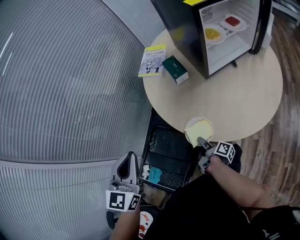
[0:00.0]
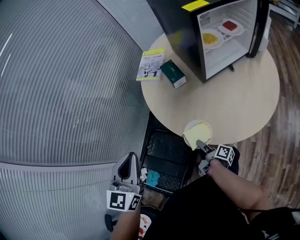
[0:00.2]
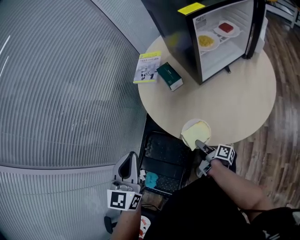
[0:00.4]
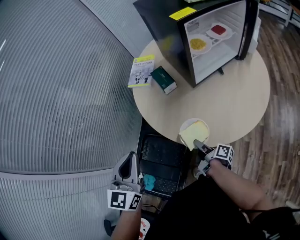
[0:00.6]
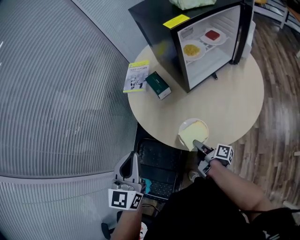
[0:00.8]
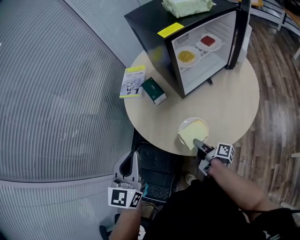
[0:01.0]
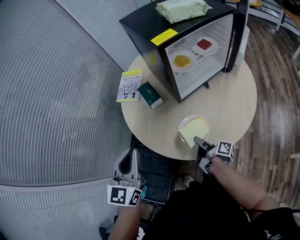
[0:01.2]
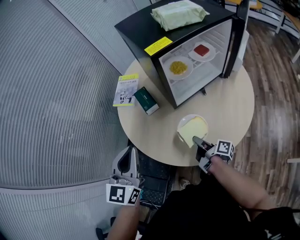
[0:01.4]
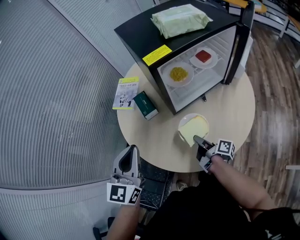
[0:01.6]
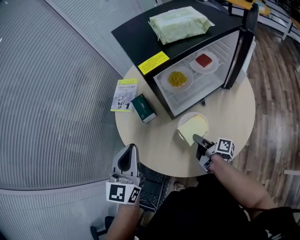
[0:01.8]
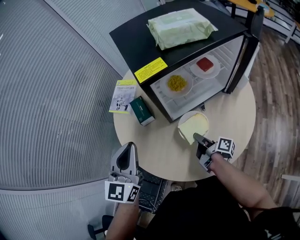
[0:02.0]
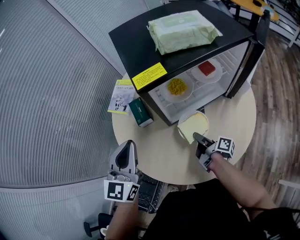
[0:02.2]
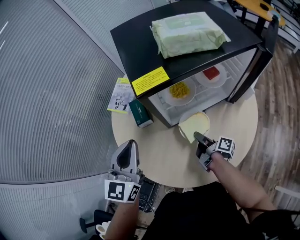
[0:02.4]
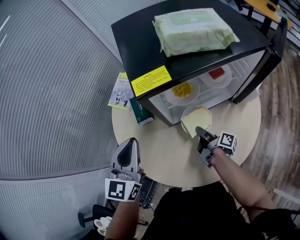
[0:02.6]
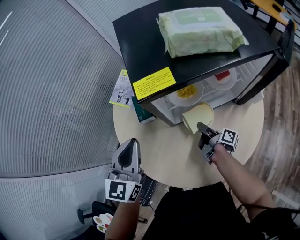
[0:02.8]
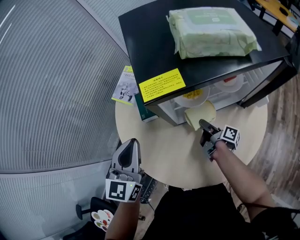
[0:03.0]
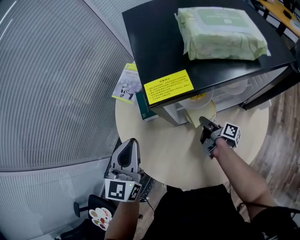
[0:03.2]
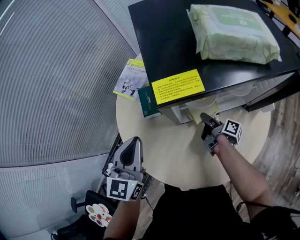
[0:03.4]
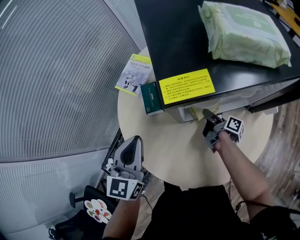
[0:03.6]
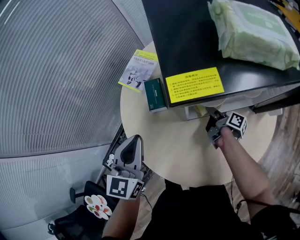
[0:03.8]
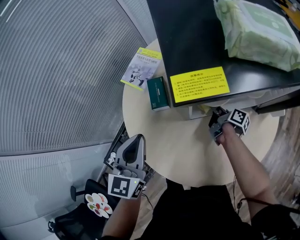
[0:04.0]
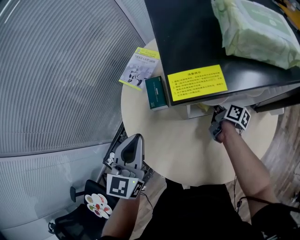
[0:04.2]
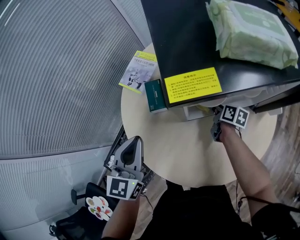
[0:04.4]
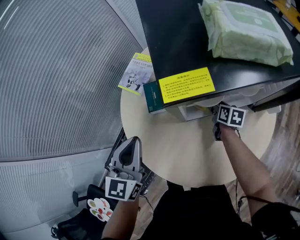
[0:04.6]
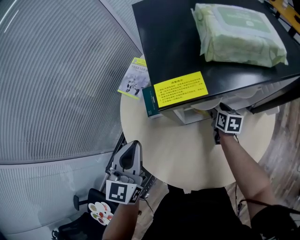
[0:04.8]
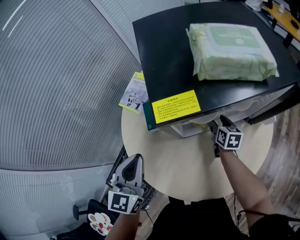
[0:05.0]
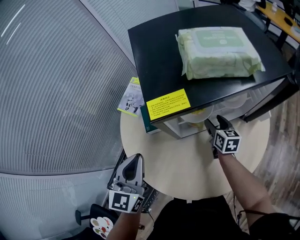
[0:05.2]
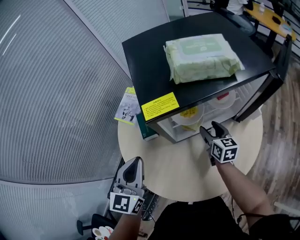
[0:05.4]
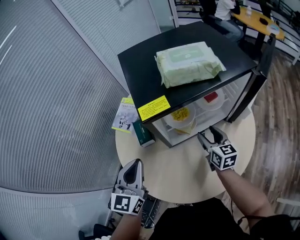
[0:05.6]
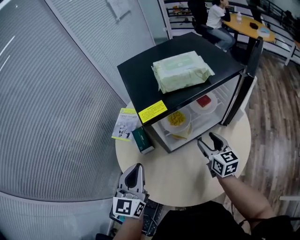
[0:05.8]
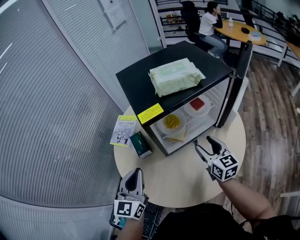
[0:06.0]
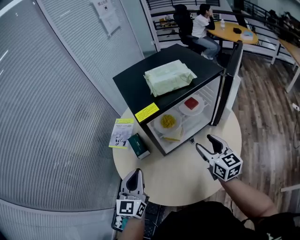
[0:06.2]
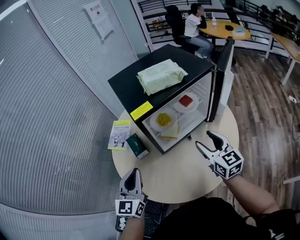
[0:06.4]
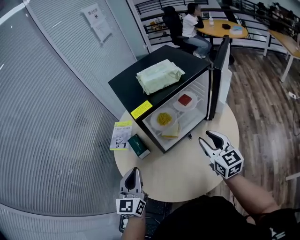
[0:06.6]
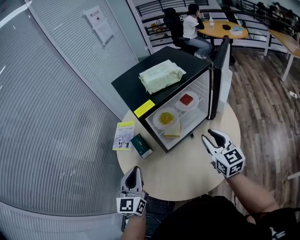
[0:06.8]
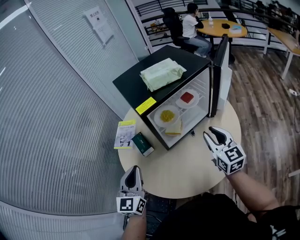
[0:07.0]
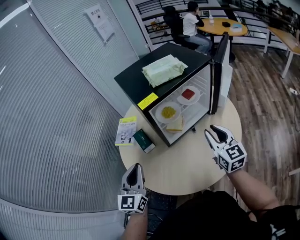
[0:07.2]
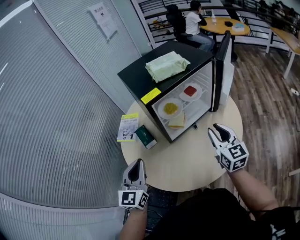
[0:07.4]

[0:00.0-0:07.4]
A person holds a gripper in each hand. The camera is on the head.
0:00.0 to 0:01.4: The left gripper shifts roughly 20 cm to the right and forward, while the right gripper travels to the right, upward and forward by some 25 cm.
0:01.4 to 0:03.0: The right gripper is displaced forward and to the right by about 25 cm. Meanwhile the left gripper shifts approximately 15 cm forward and to the right.
0:03.0 to 0:04.4: The right gripper is displaced forward by roughly 10 cm, and turns by roughly 40 degrees.
0:04.4 to 0:06.0: The left gripper shifts about 5 cm upward, while the right gripper moves upward and backward, approximately 25 cm, and changes its angle by roughly 50 degrees.
0:06.0 to 0:07.4: The right gripper is displaced backward and upward by some 15 cm, and closes its fingers. Meanwhile the left gripper shifts roughly 5 cm backward.

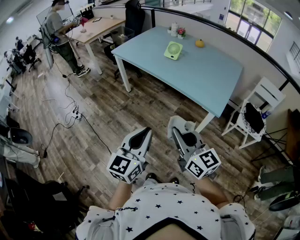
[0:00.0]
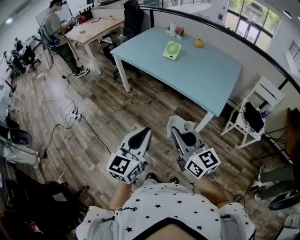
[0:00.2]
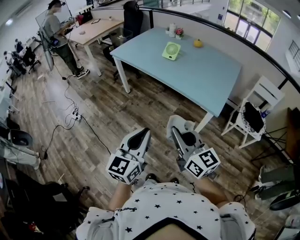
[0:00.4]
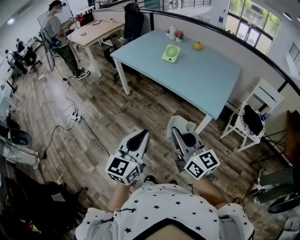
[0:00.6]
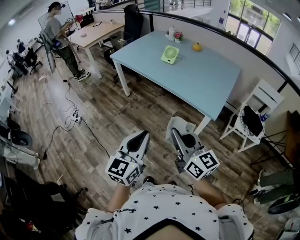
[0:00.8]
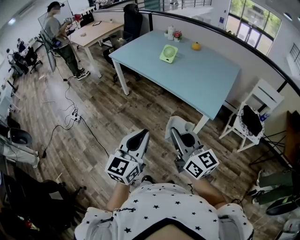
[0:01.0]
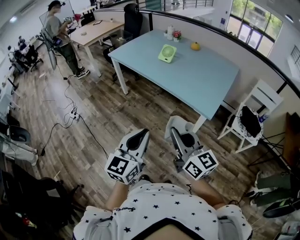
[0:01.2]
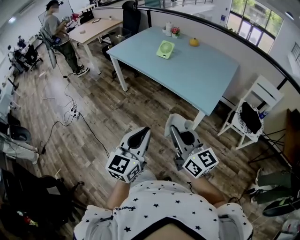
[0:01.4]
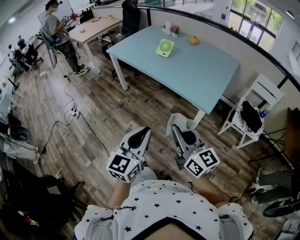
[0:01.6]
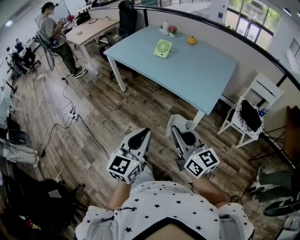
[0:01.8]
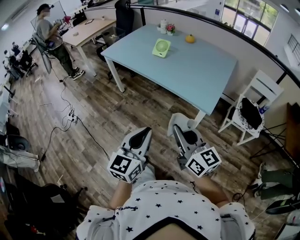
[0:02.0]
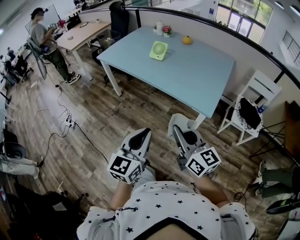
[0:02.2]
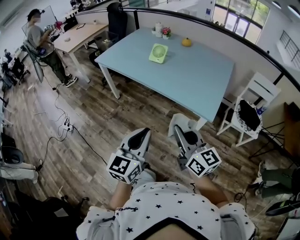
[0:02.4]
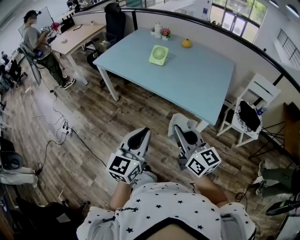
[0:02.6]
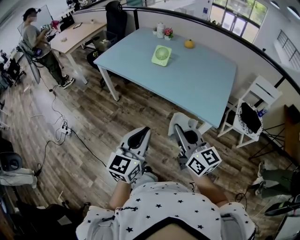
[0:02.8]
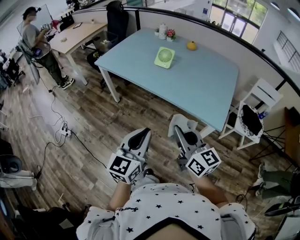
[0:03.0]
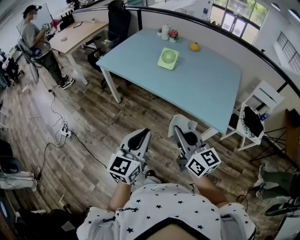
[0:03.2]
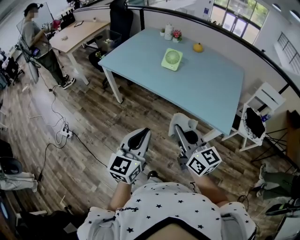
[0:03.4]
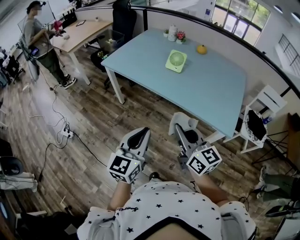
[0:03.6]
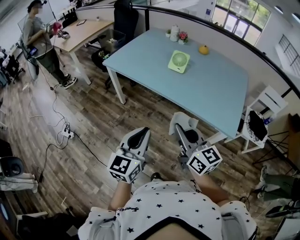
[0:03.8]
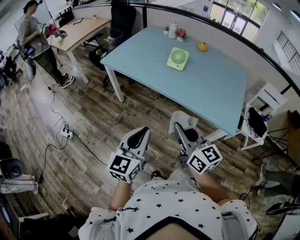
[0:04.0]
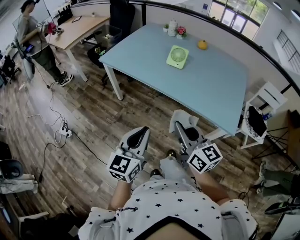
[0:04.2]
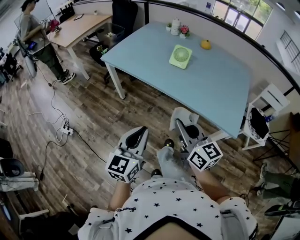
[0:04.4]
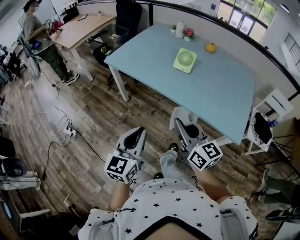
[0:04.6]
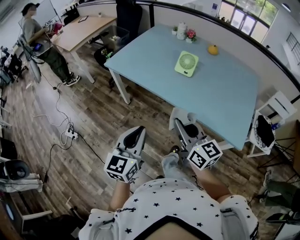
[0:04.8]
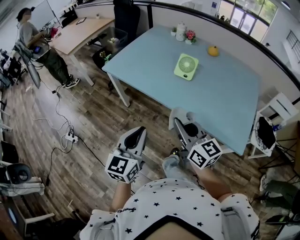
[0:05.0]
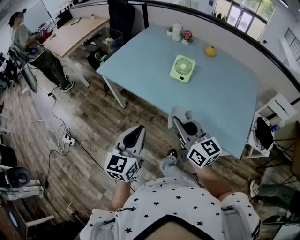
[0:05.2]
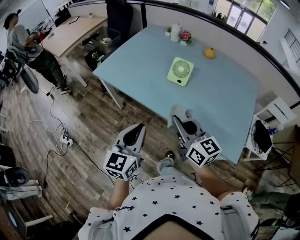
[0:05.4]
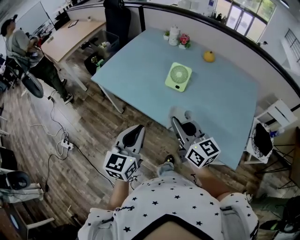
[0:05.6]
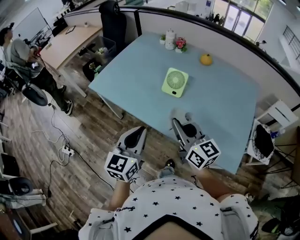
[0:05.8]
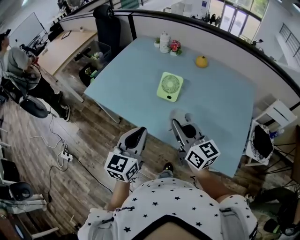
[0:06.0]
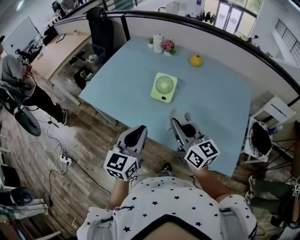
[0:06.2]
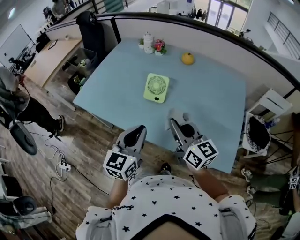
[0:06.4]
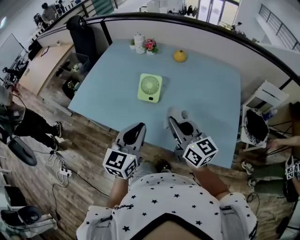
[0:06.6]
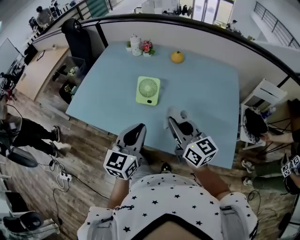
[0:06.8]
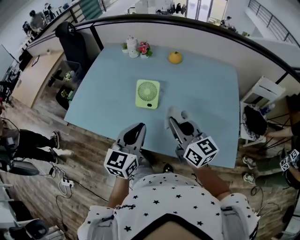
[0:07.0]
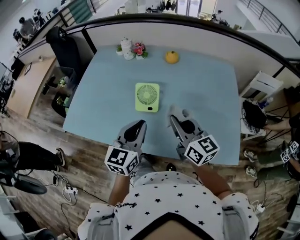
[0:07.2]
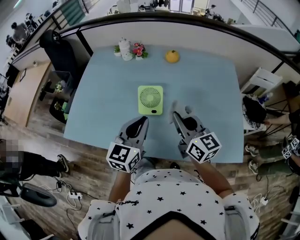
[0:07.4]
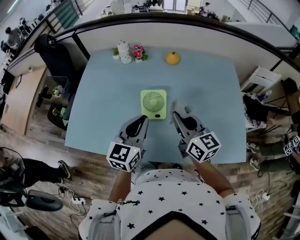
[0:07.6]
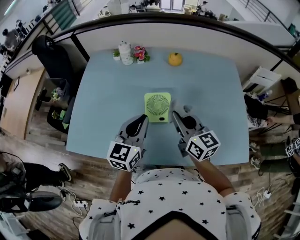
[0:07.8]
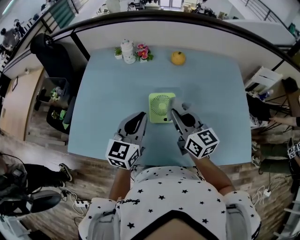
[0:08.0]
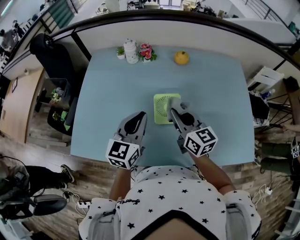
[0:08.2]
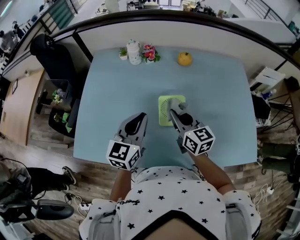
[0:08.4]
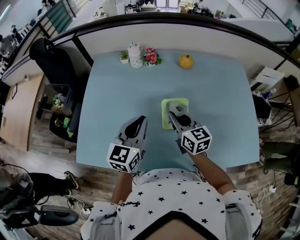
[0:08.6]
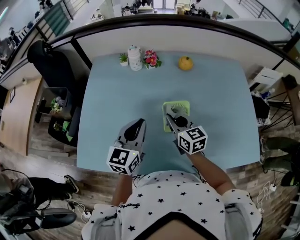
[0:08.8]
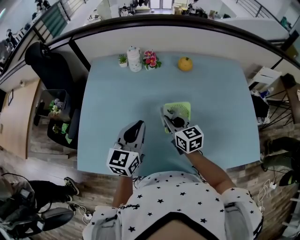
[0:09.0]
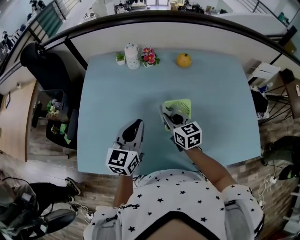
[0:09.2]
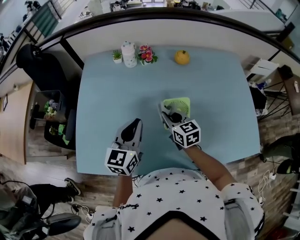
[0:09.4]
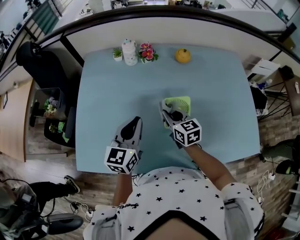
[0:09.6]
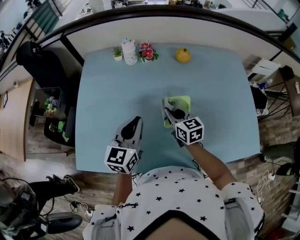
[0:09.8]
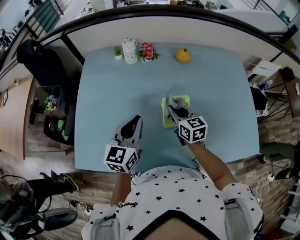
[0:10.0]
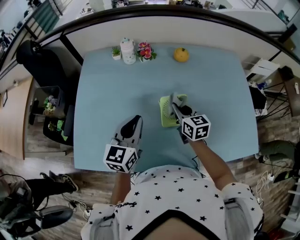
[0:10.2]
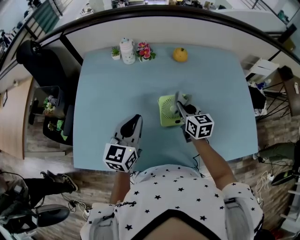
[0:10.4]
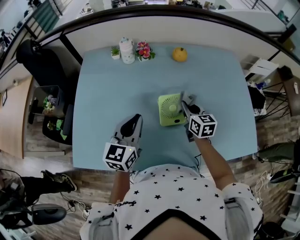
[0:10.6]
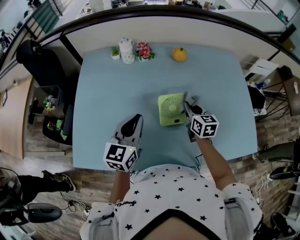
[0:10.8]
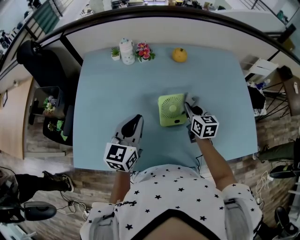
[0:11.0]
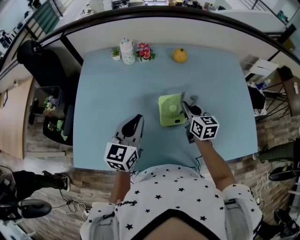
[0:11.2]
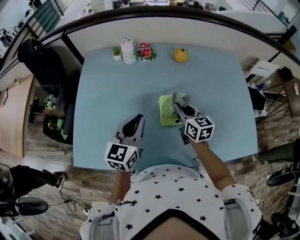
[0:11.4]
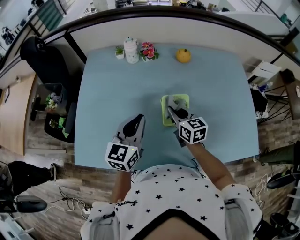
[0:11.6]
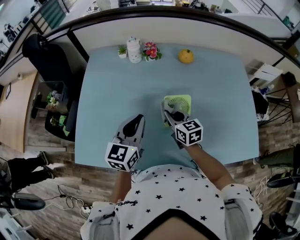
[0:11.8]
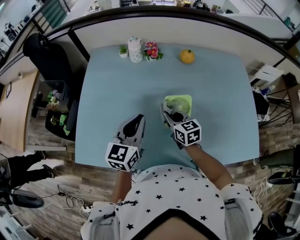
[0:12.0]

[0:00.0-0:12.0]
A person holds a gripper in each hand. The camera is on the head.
0:00.0 to 0:01.6: Both grippers travel together to the right, roughly 10 cm.
0:01.6 to 0:03.0: Both grippers travel together forward and to the left, about 20 cm.
0:03.0 to 0:04.4: Both grippers travel together to the left and forward, approximately 15 cm.
0:04.4 to 0:06.0: Both grippers travel together forward, roughly 25 cm.
0:06.0 to 0:07.6: The right gripper moves approximately 15 cm, and swivels roughly 30 degrees. The left gripper changes place by approximately 20 cm, and rotates about 30 degrees.
0:07.6 to 0:09.0: The right gripper is displaced to the left, downward and forward by some 20 cm. The left gripper moves to the left and forward, approximately 15 cm.
0:09.0 to 0:10.4: The right gripper shifts some 10 cm to the right.
0:10.4 to 0:12.0: The right gripper travels to the left by approximately 10 cm.

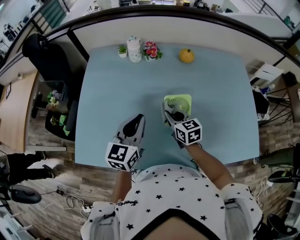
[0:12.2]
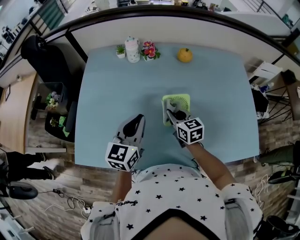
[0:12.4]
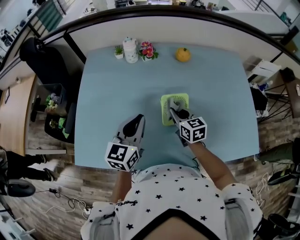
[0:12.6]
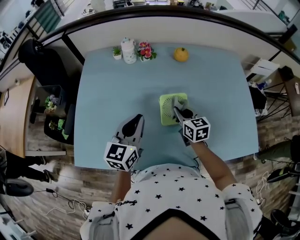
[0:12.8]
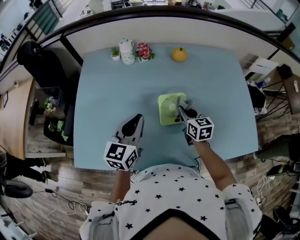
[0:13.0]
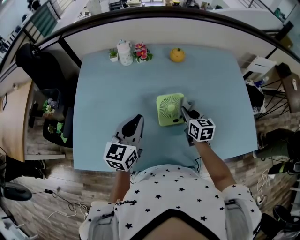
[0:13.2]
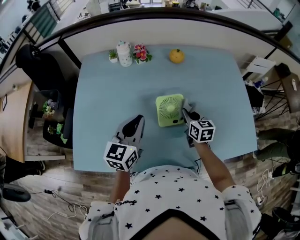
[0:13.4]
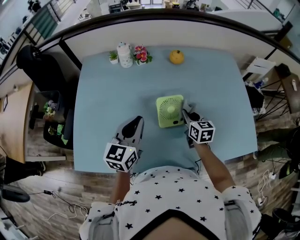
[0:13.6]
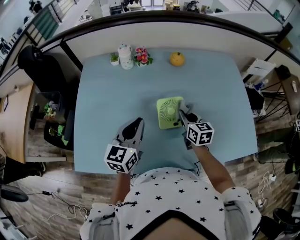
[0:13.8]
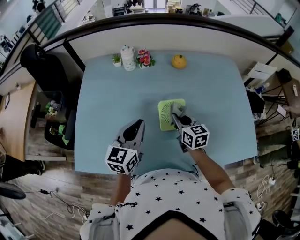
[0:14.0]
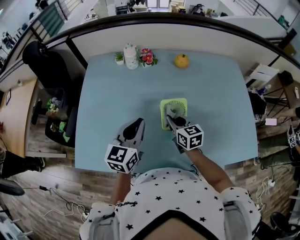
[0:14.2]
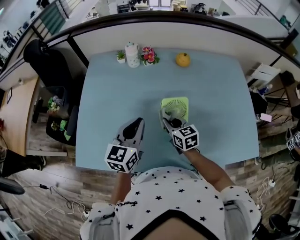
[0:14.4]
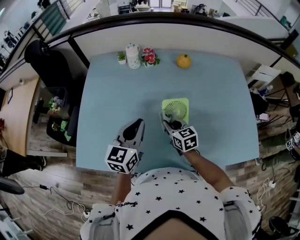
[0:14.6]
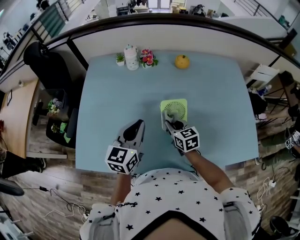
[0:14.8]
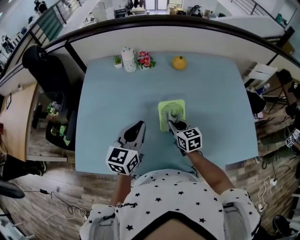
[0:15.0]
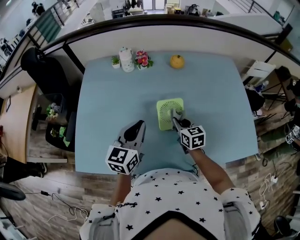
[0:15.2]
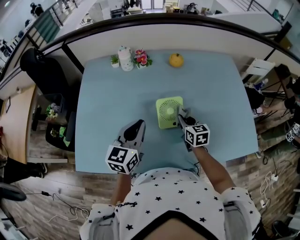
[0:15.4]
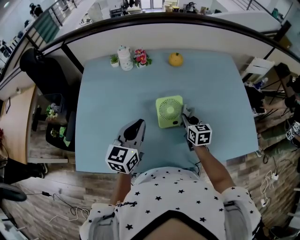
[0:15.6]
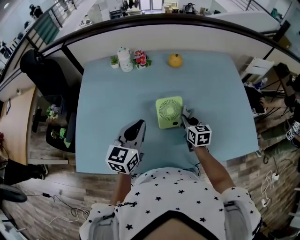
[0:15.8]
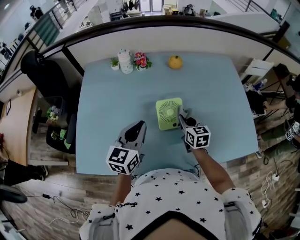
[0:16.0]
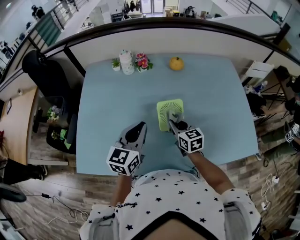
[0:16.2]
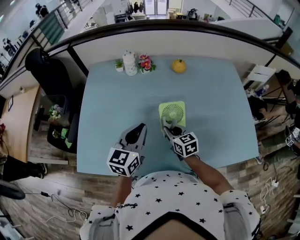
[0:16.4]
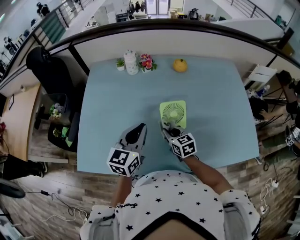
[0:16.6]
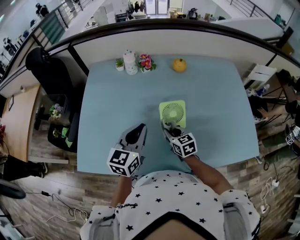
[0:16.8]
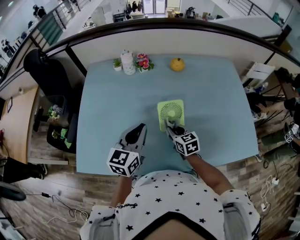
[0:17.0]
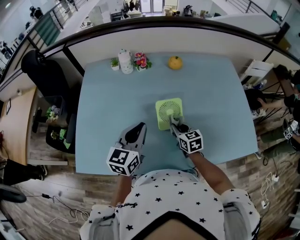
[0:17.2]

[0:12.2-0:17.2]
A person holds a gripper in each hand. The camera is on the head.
0:12.2 to 0:13.8: The right gripper shifts roughly 10 cm to the right.
0:13.8 to 0:15.6: The right gripper reaches some 10 cm to the left, then returns.
0:15.6 to 0:17.2: The right gripper moves to the left, roughly 5 cm.
